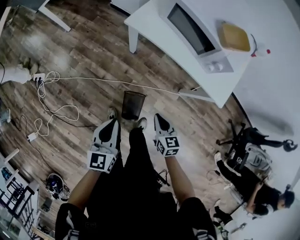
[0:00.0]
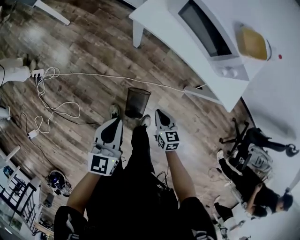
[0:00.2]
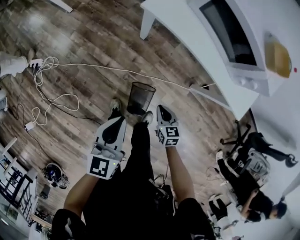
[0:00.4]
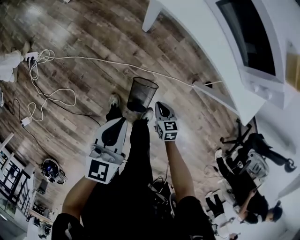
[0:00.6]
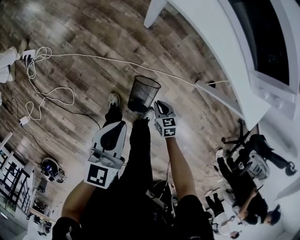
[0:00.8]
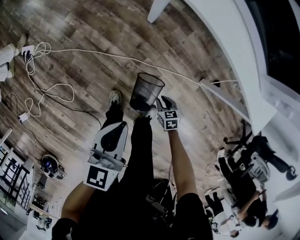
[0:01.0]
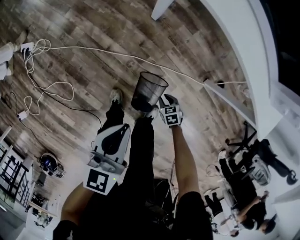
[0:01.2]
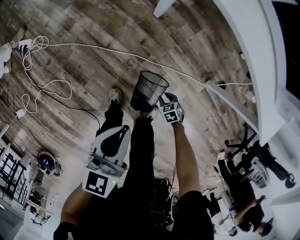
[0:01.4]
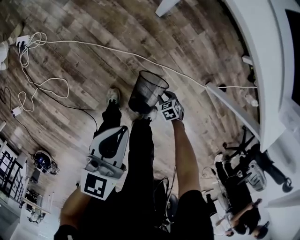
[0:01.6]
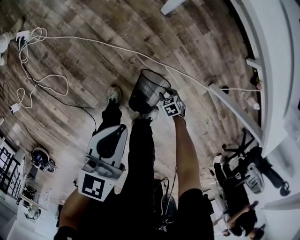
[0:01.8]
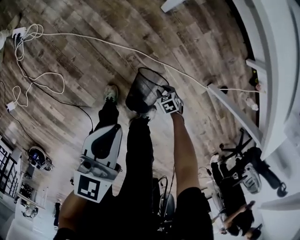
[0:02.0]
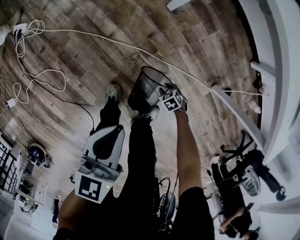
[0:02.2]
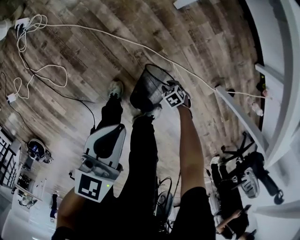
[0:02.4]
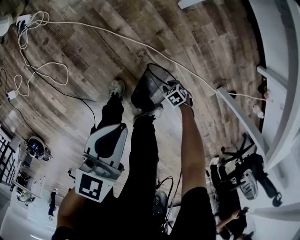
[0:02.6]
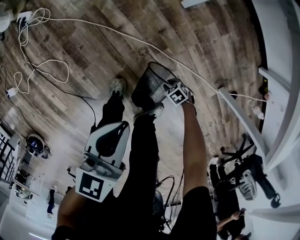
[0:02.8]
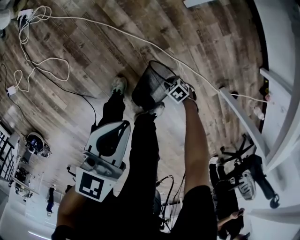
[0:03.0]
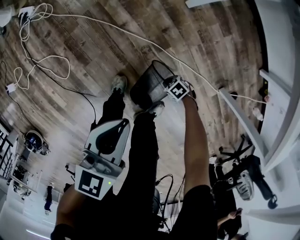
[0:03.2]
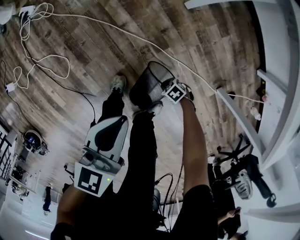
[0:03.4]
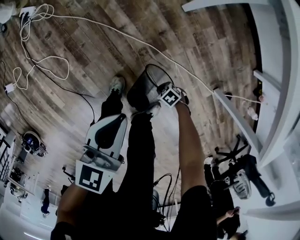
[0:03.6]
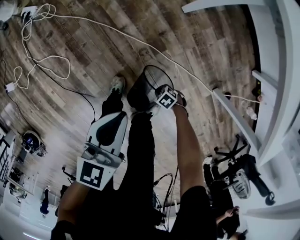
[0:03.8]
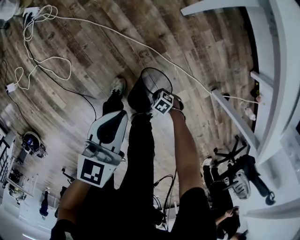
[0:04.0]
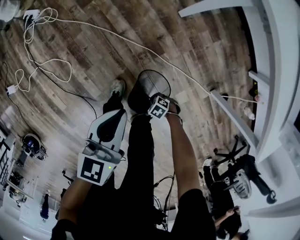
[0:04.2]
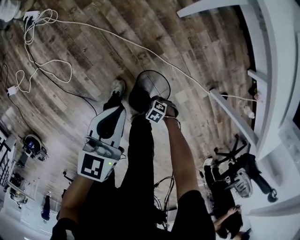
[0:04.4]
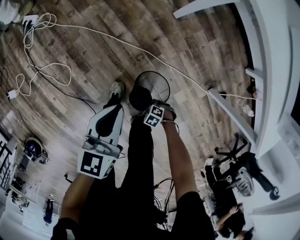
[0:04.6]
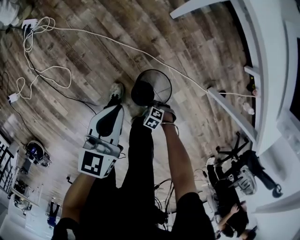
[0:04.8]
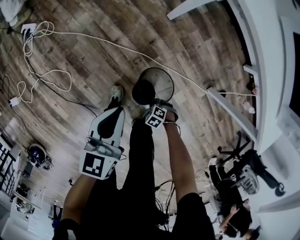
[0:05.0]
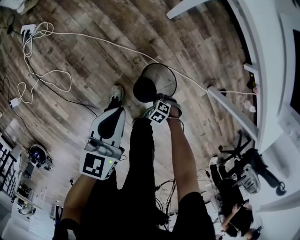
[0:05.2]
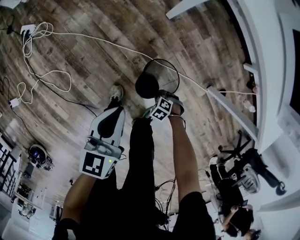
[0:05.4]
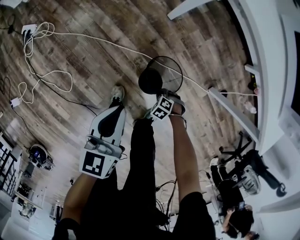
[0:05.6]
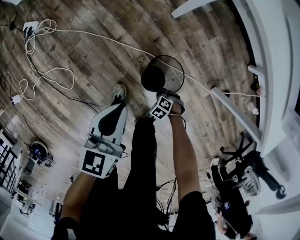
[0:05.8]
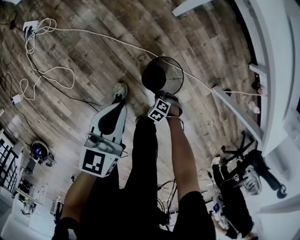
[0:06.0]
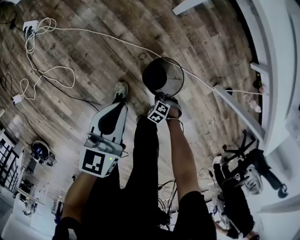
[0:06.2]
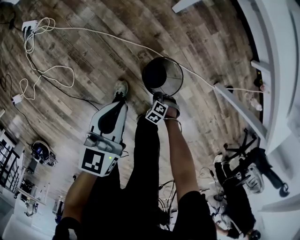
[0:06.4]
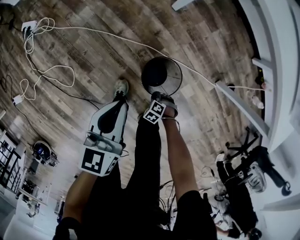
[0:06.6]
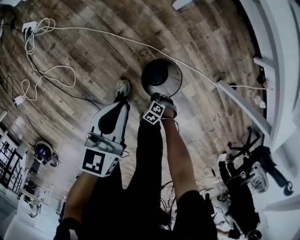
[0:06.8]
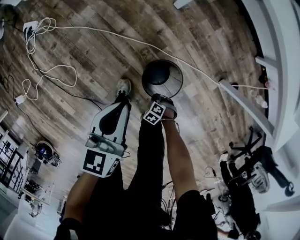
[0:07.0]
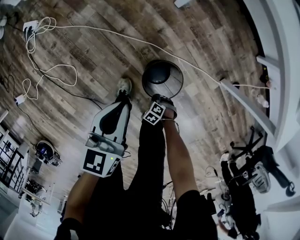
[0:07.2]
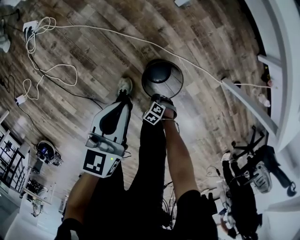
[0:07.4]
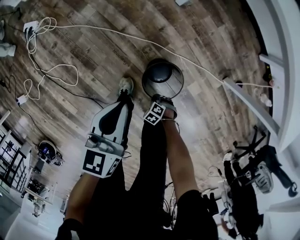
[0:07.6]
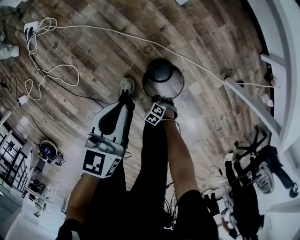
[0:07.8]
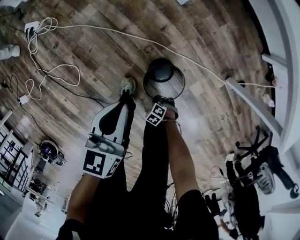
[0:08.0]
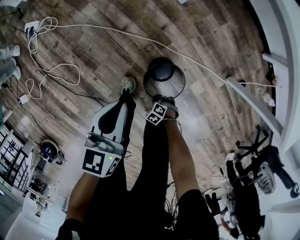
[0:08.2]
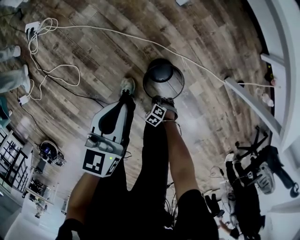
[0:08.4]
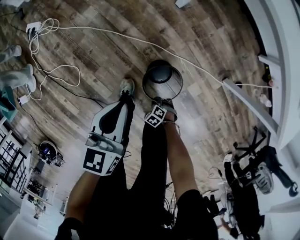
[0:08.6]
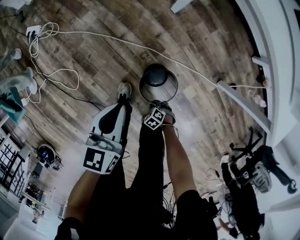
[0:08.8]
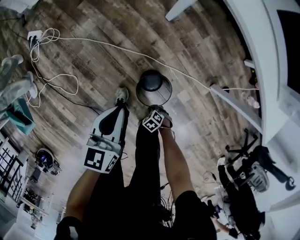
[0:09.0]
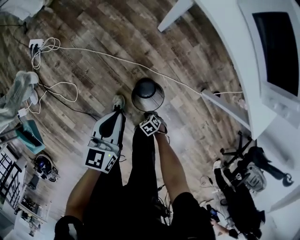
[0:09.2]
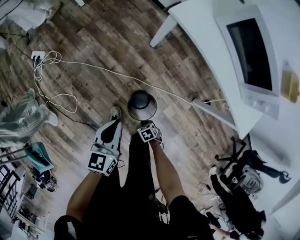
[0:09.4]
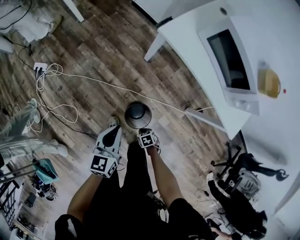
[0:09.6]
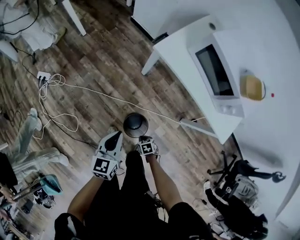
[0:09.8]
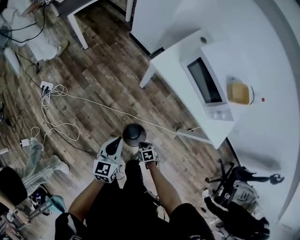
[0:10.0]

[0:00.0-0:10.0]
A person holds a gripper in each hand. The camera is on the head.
0.0 to 1.4 s: The left gripper travels downward by some 20 cm; the right gripper shifts approximately 50 cm downward, points its fingers approximately 40 degrees further downward, and opens up.
1.4 to 2.8 s: Both grippers travel together downward, some 10 cm. The right gripper changes its angle by about 30 degrees.
2.8 to 4.2 s: The right gripper moves roughly 15 cm.
4.2 to 5.8 s: The right gripper moves approximately 5 cm.
5.8 to 7.2 s: The right gripper shifts by some 15 cm.
7.2 to 8.6 s: The grippers stay close to where they were, moving slightly.
8.6 to 10.0 s: The grippers both shift upward by some 30 cm. The right gripper twists roughly 40 degrees clockwise, seen from behind.

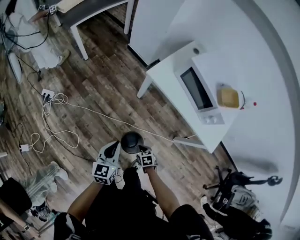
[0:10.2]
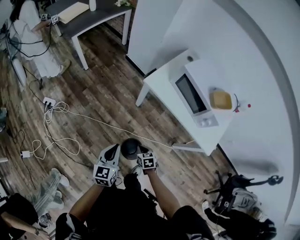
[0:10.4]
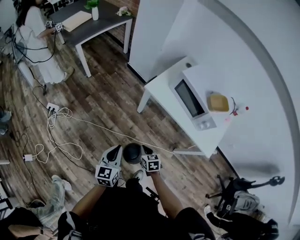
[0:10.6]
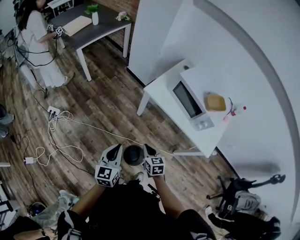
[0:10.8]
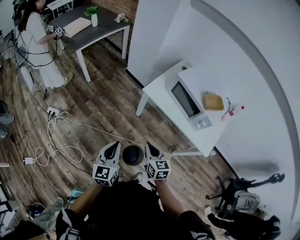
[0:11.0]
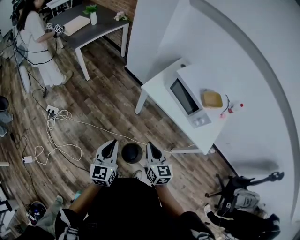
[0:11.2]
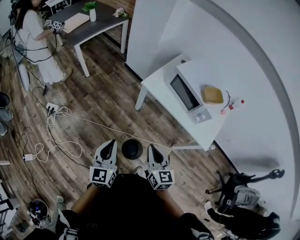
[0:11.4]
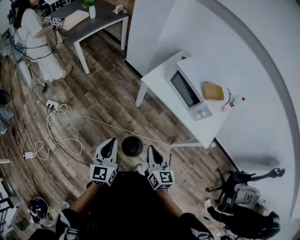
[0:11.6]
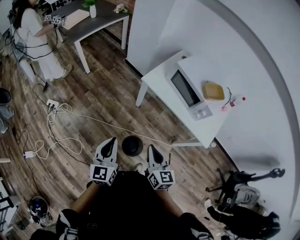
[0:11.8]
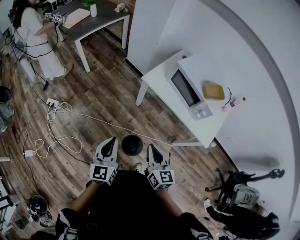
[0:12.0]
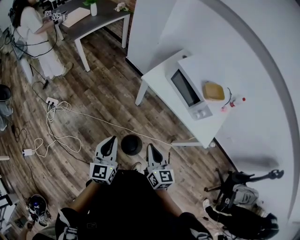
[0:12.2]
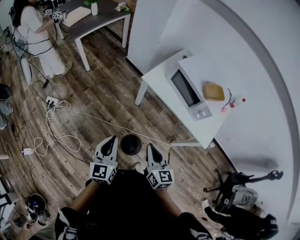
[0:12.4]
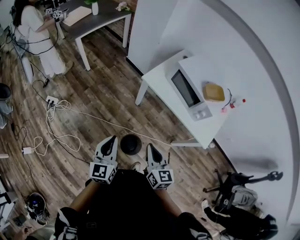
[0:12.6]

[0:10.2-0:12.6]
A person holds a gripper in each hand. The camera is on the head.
10.2 to 11.4 s: The right gripper moves upward, about 40 cm, and points its fingers approximately 50 degrees further upward. The left gripper goes some 15 cm upward.
11.4 to 12.6 s: The grippers stay close to where they were, moving slightly.

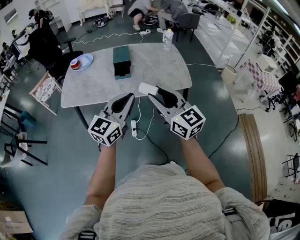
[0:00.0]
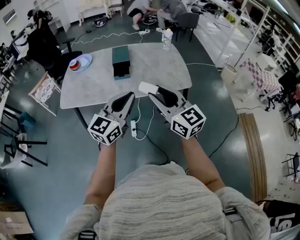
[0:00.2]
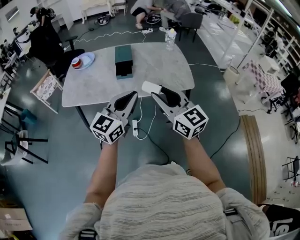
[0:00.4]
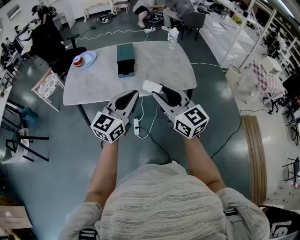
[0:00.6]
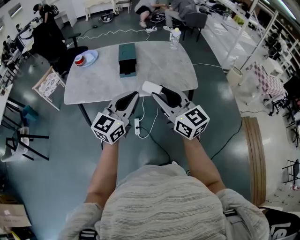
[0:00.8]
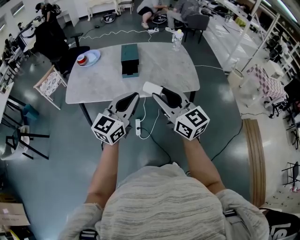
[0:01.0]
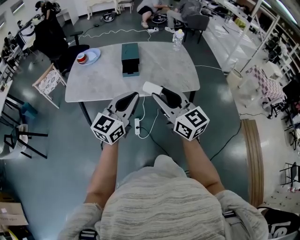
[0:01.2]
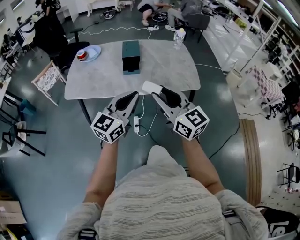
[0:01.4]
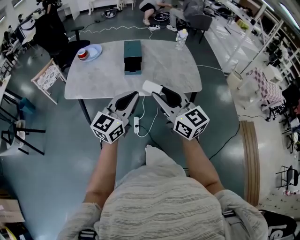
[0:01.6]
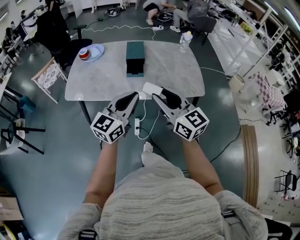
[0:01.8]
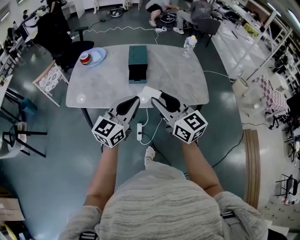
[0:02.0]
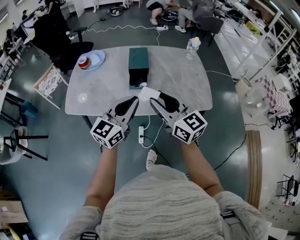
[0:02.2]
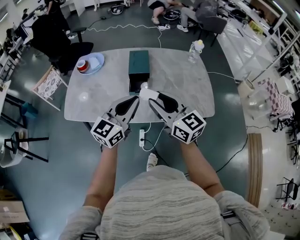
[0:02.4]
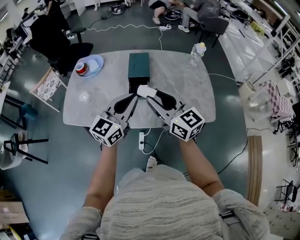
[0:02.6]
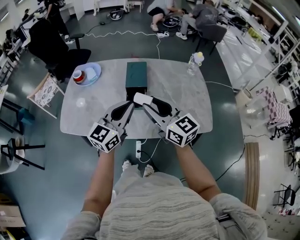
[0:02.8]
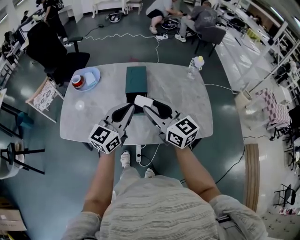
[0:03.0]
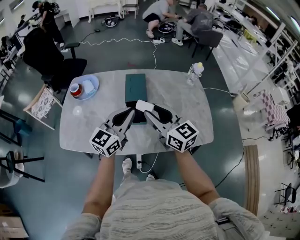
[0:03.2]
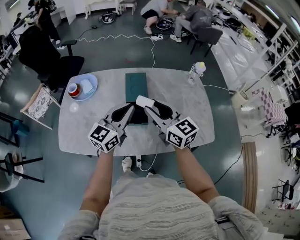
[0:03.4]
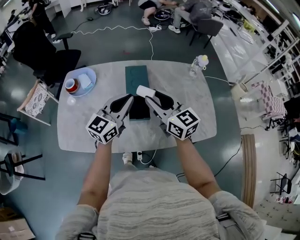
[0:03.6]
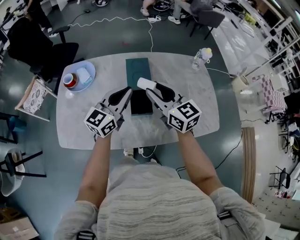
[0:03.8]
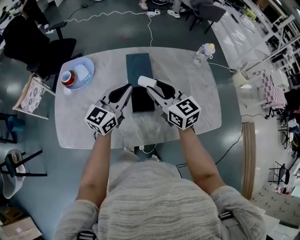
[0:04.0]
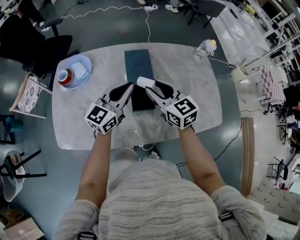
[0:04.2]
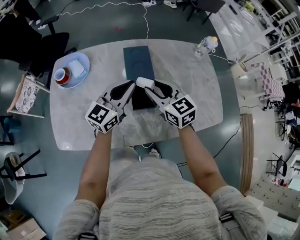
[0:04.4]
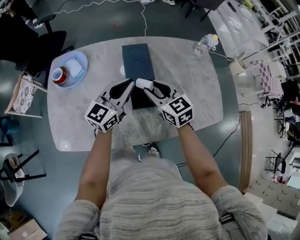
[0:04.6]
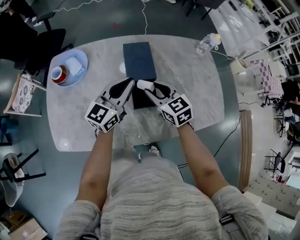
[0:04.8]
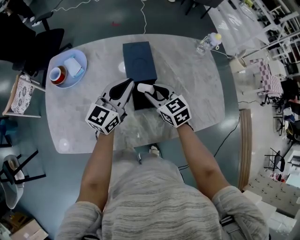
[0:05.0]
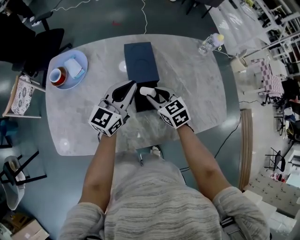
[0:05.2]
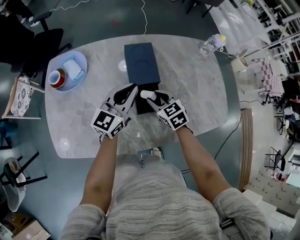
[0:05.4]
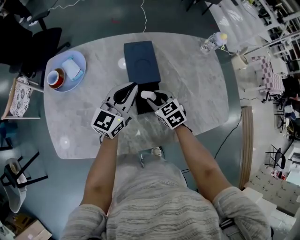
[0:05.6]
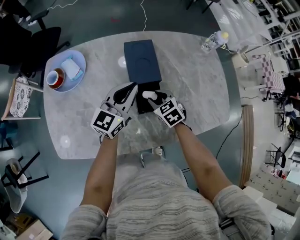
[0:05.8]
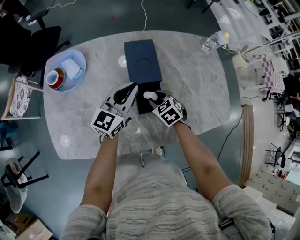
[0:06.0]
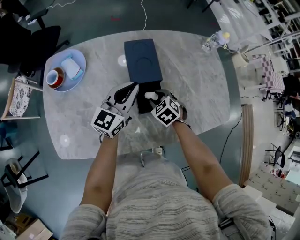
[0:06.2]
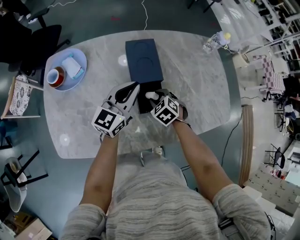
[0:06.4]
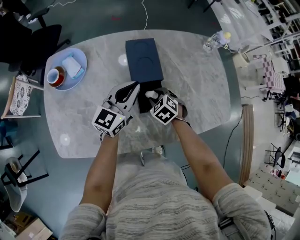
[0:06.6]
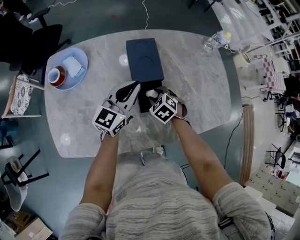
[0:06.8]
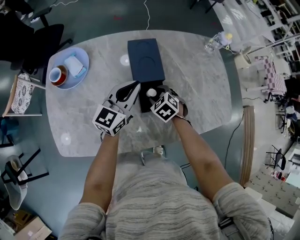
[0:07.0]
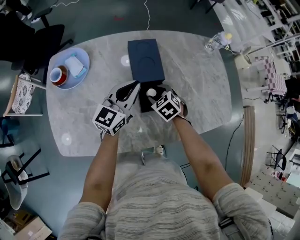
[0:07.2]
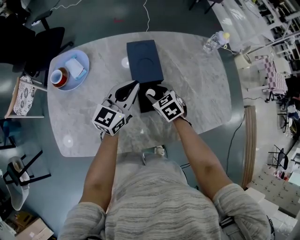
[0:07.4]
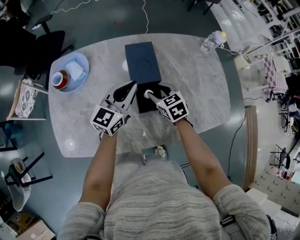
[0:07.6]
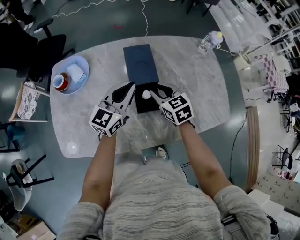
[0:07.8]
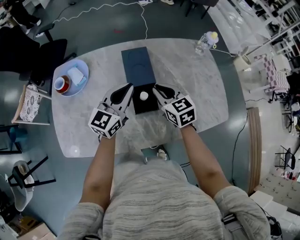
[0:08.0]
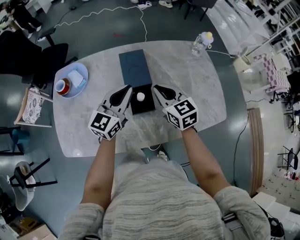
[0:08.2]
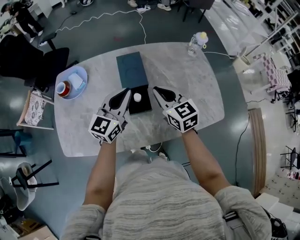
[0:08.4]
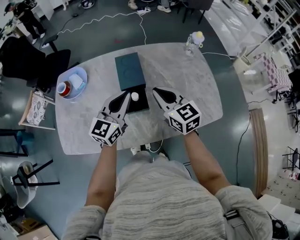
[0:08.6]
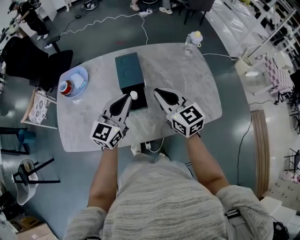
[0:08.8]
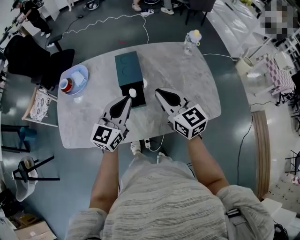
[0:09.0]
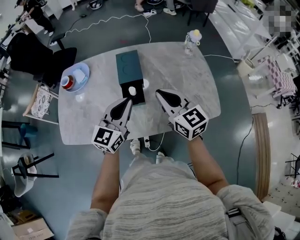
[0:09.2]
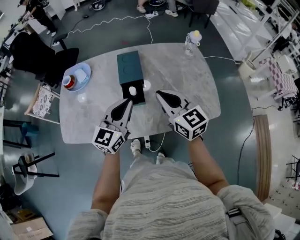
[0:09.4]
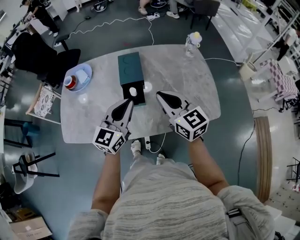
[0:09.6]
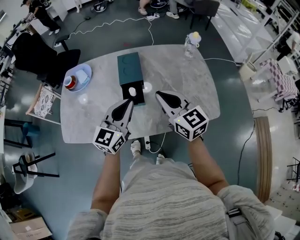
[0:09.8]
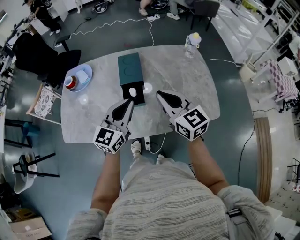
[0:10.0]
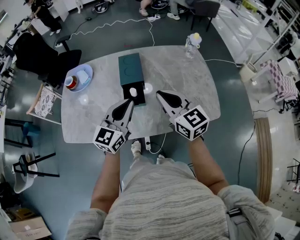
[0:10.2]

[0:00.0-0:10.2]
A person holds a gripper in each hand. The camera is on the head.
0.0 to 1.4 s: The right gripper ends up approximately 5 cm from where it was.
1.4 to 3.0 s: The grippers both shift forward by about 35 cm.
3.0 to 4.4 s: Both grippers travel together forward, downward and to the left, approximately 20 cm. The right gripper swivels roughly 20 degrees.
4.4 to 5.8 s: The right gripper goes approximately 20 cm downward, and tilts its fingers some 30 degrees downward, while the left gripper travels downward by roughly 5 cm.
5.8 to 7.2 s: The grippers move only a little.
7.2 to 8.8 s: The left gripper is displaced backward, to the right and upward by approximately 20 cm; the right gripper moves upward and to the right, roughly 30 cm, points its fingers roughly 50 degrees further upward, and closes.
8.8 to 10.2 s: Both grippers travel together backward, some 5 cm.

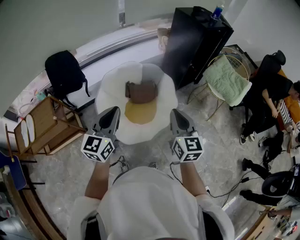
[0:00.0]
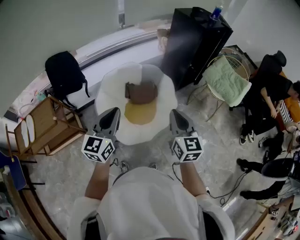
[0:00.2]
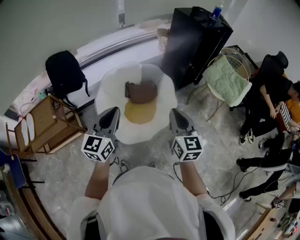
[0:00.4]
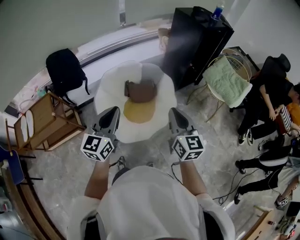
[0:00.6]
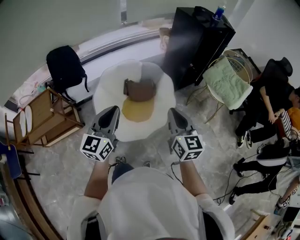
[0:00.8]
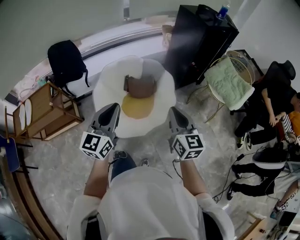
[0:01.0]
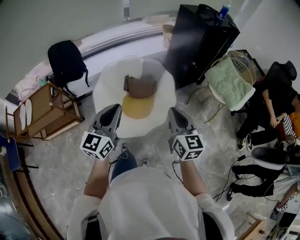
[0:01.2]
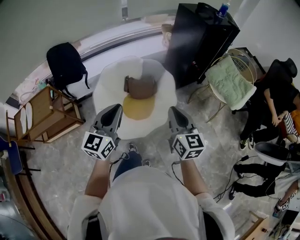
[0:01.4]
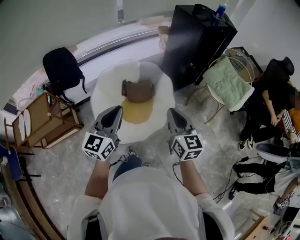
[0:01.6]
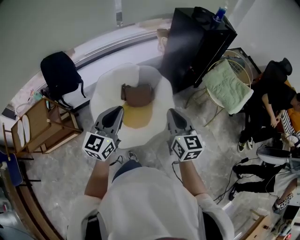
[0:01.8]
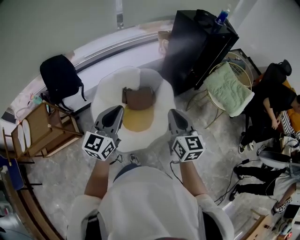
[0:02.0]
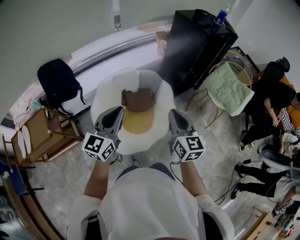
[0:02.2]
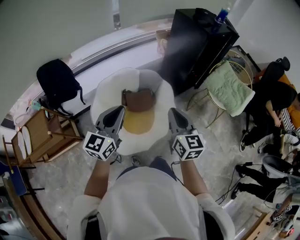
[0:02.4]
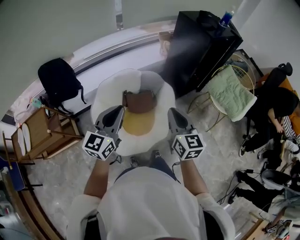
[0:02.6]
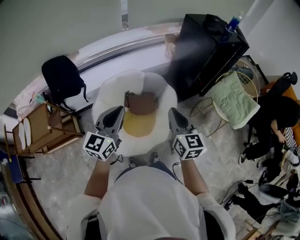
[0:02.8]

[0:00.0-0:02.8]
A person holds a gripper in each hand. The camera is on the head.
0.0 to 1.4 s: Both grippers move to the right, some 5 cm.
1.4 to 2.8 s: Both grippers travel together forward, roughly 15 cm.
